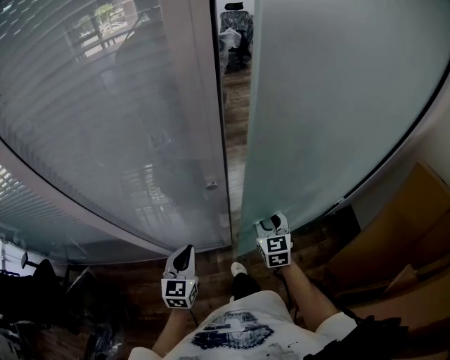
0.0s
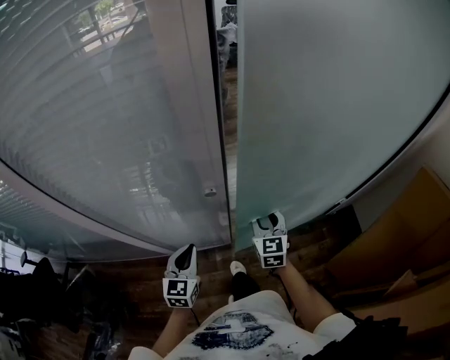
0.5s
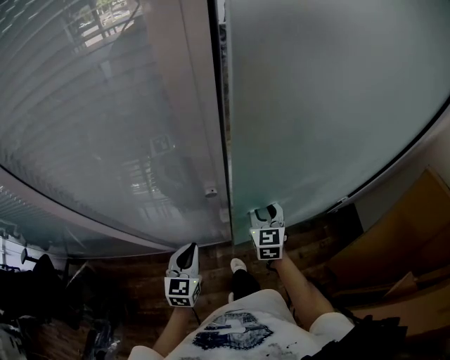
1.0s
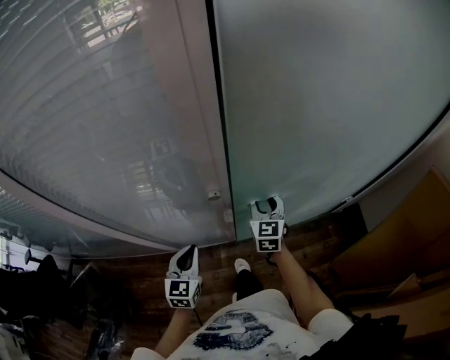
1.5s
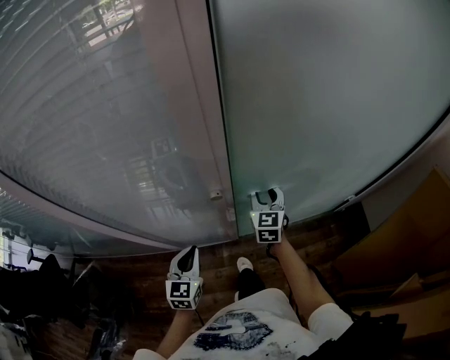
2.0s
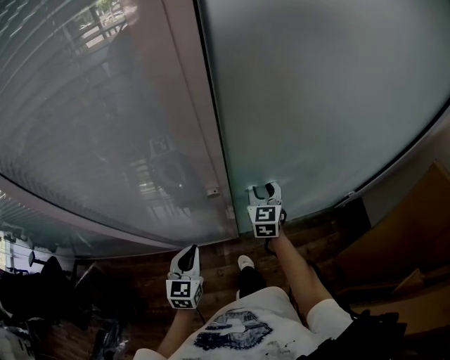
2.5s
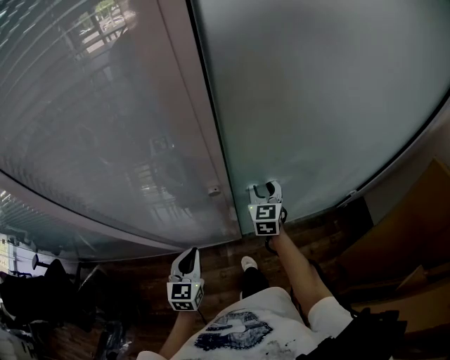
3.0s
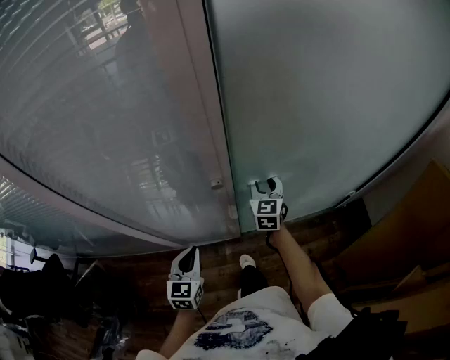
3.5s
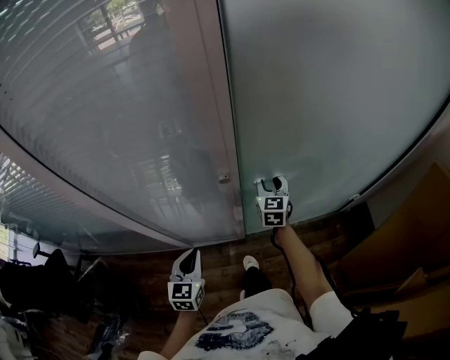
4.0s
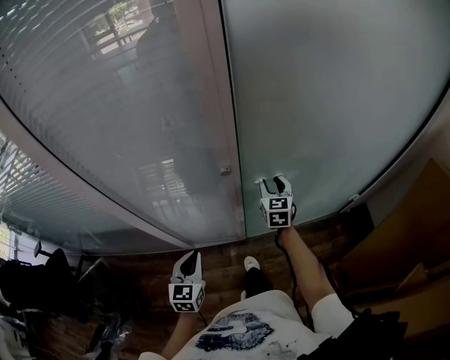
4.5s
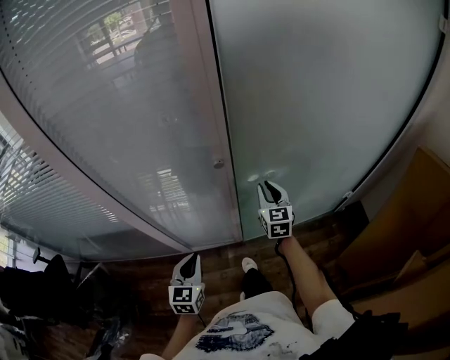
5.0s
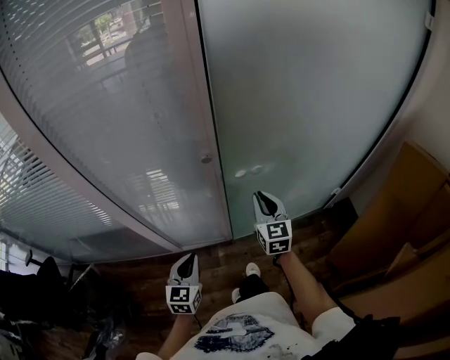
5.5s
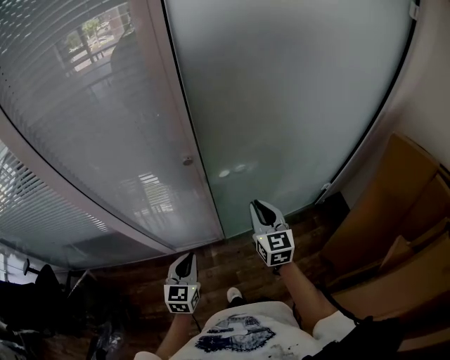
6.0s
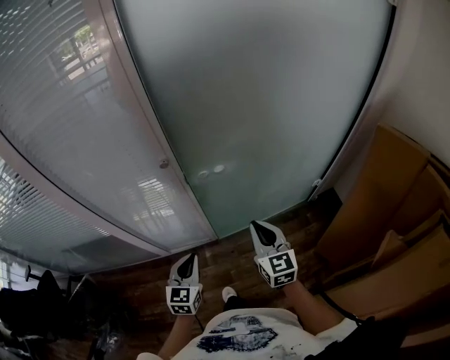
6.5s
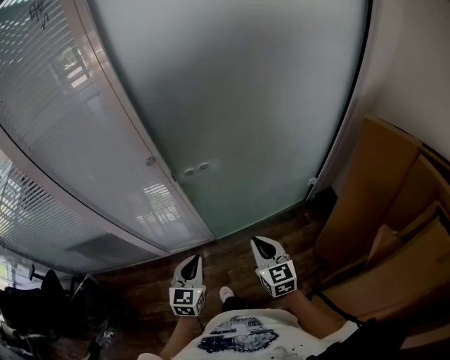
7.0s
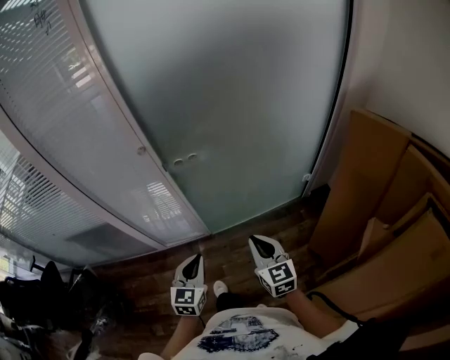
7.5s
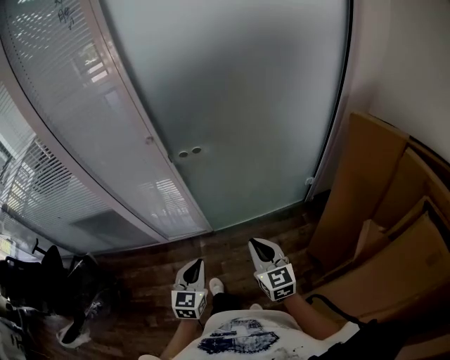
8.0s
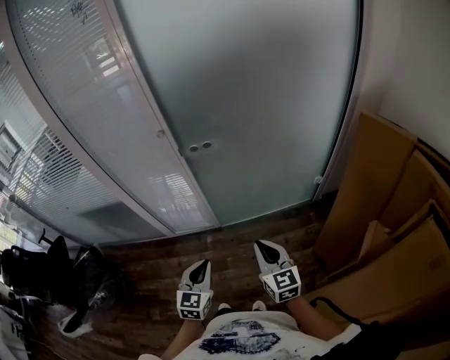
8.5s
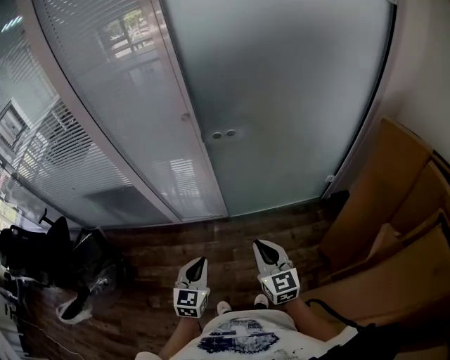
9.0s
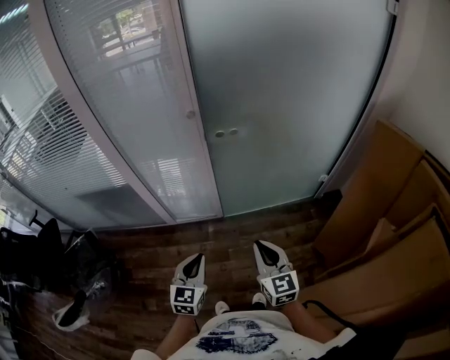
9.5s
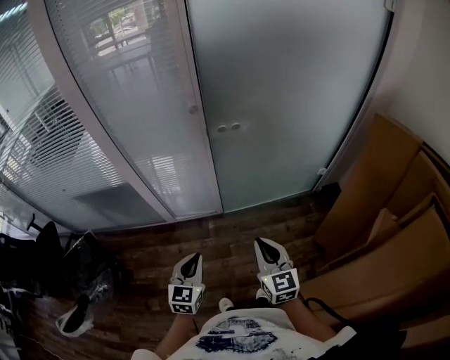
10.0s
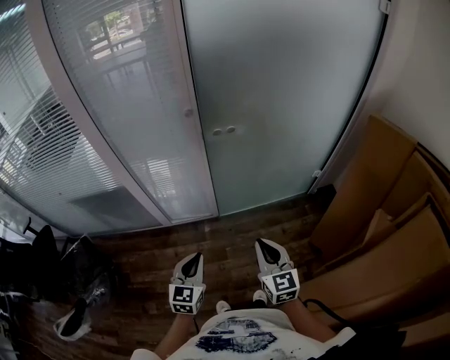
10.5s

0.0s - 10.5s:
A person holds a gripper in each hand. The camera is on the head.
0.0s - 2.0s: The right gripper travels forward by some 10 cm.
2.0s - 4.0s: The left gripper changes place by about 5 cm.
4.0s - 6.5s: The left gripper moves to the right and backward, about 15 cm; the right gripper travels backward by about 30 cm, and closes up.
6.5s - 8.5s: The grippers both shift backward and to the right by about 25 cm.
8.5s - 10.5s: The two grippers go some 15 cm to the left.

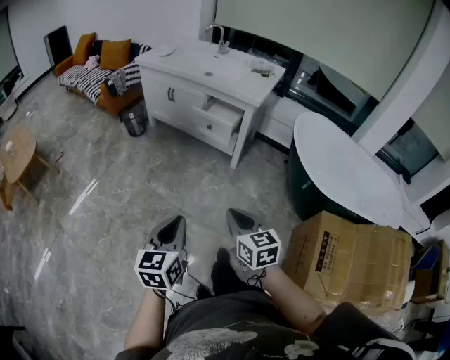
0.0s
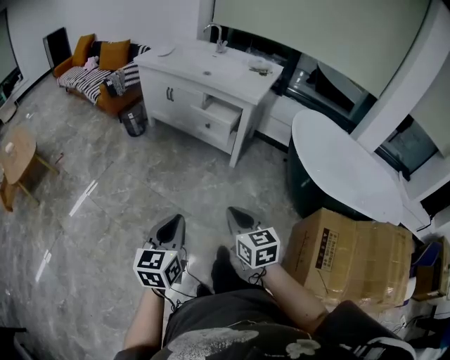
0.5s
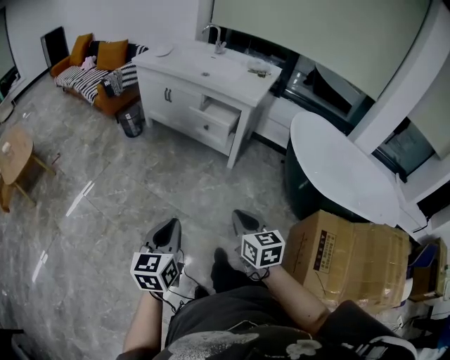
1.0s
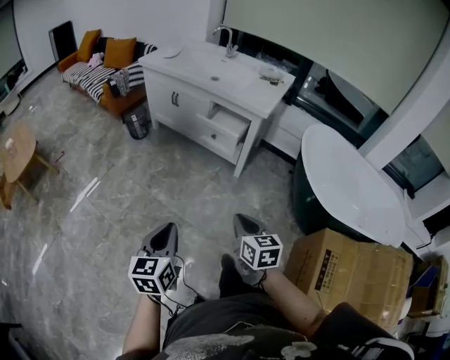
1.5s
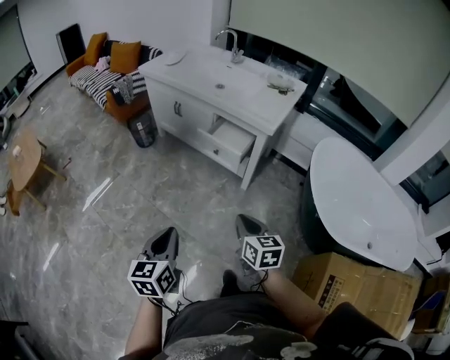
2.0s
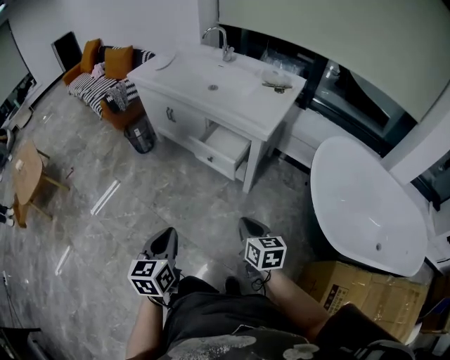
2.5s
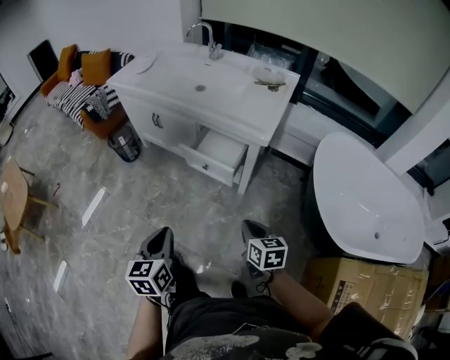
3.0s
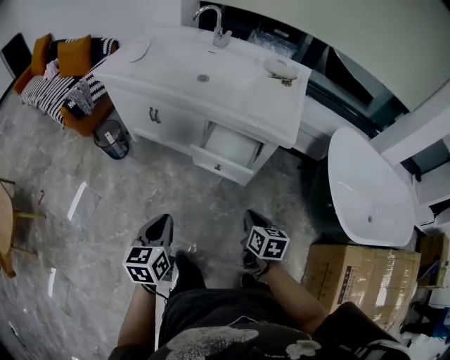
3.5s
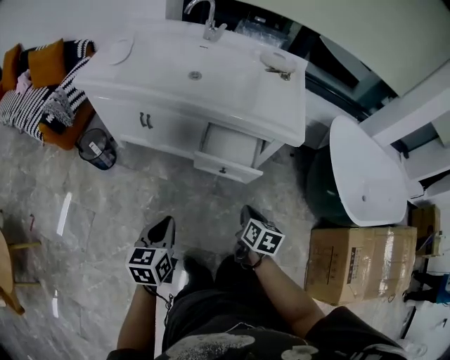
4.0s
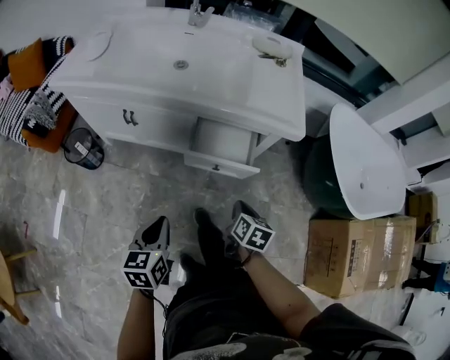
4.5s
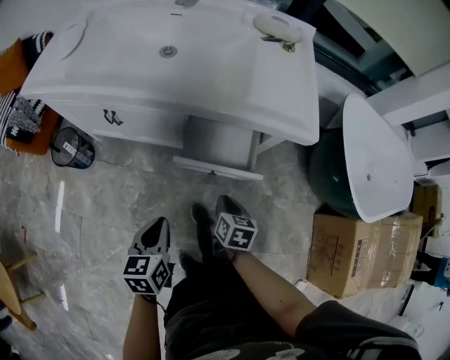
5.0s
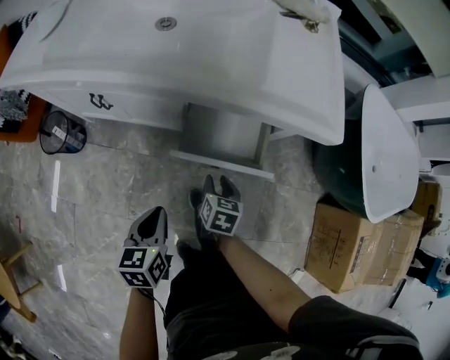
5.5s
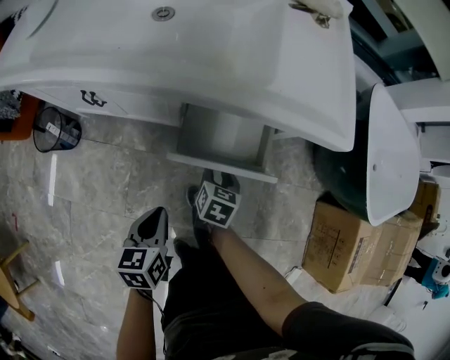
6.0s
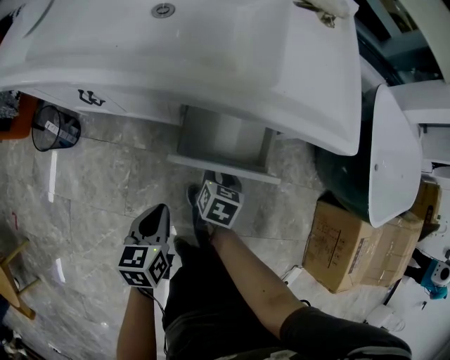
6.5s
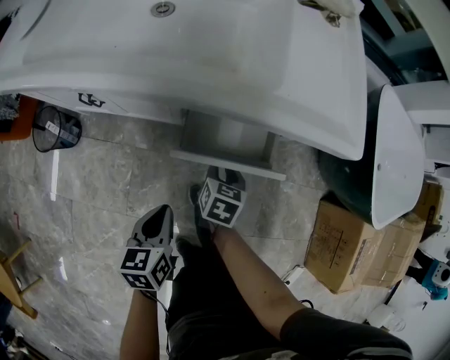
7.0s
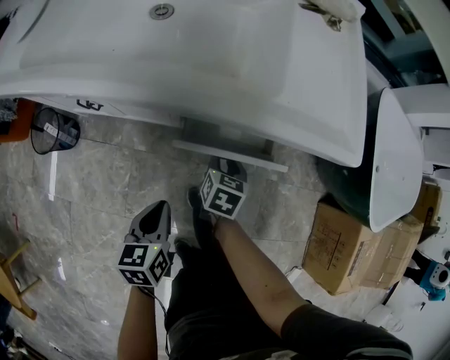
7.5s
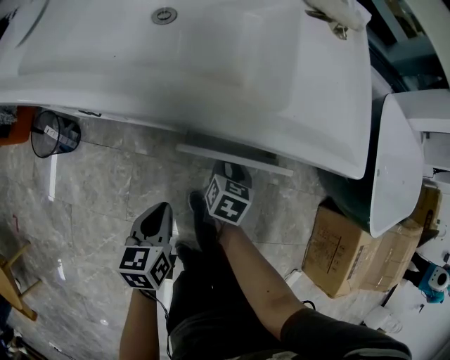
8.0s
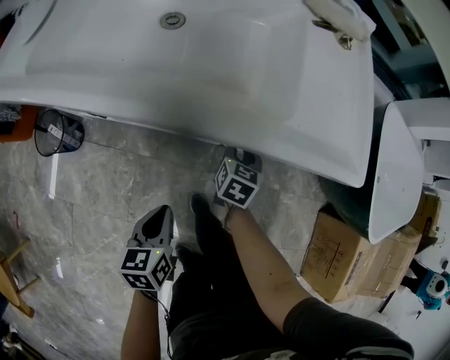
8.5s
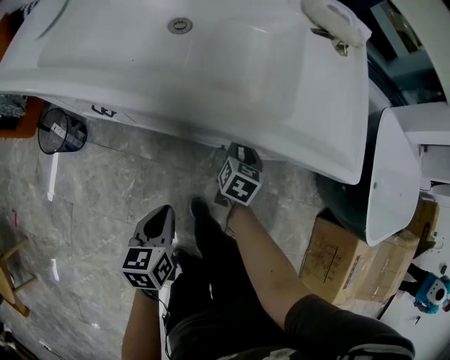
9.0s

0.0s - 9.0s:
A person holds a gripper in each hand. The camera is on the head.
0.0s - 2.0s: Both grippers travel together forward, roughly 20 cm.
2.0s - 4.5s: The right gripper shifts by approximately 35 cm, and rotates some 50 degrees, while the left gripper shifts by roughly 50 cm, and swivels roughly 30 degrees.
4.5s - 7.0s: The right gripper travels forward, downward and to the left by approximately 25 cm, and opens, while the left gripper heads downward and forward, covering some 20 cm.
7.0s - 9.0s: The right gripper moves forward, roughly 10 cm.

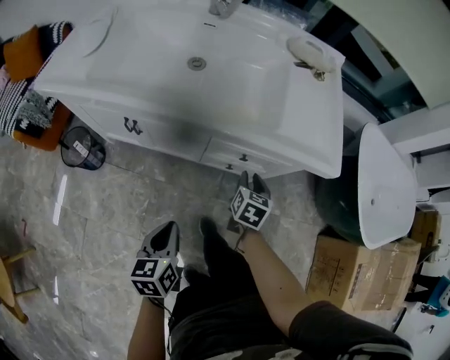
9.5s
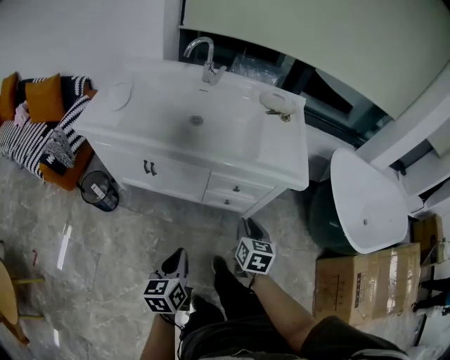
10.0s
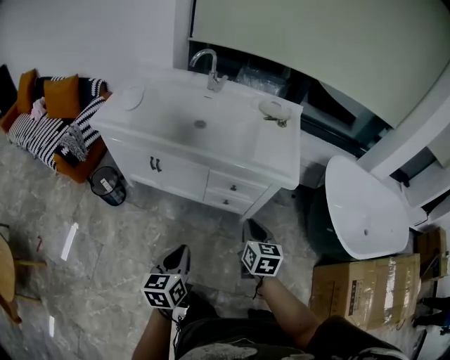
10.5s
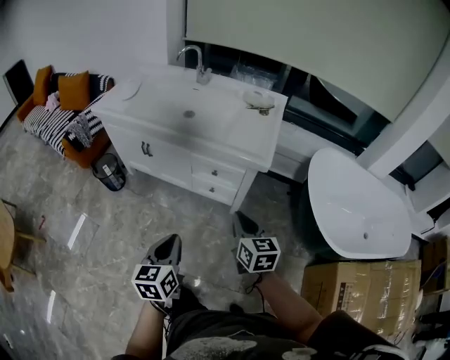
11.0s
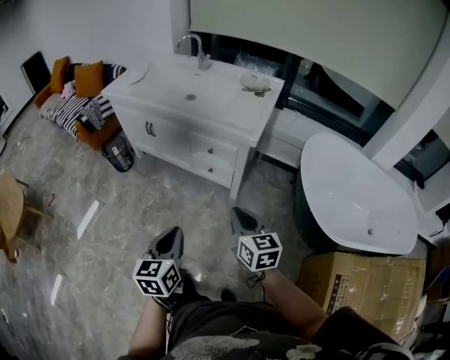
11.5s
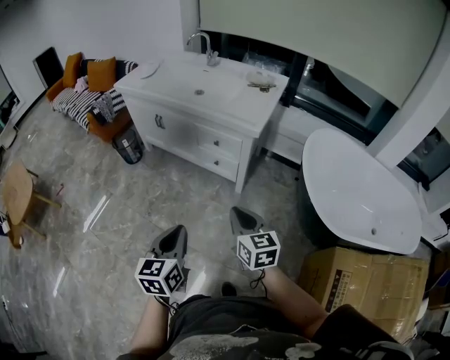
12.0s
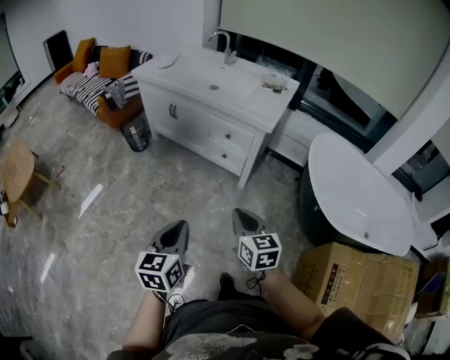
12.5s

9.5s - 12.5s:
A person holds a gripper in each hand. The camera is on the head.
9.5s - 11.0s: The right gripper is displaced upward, backward and to the right by roughly 40 cm, swivels some 40 degrees, and closes. Meanwhile the left gripper shifts approximately 35 cm backward, upward and to the right.
11.0s - 12.5s: Both grippers move backward, some 25 cm.

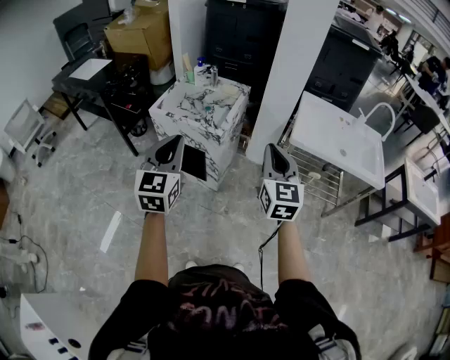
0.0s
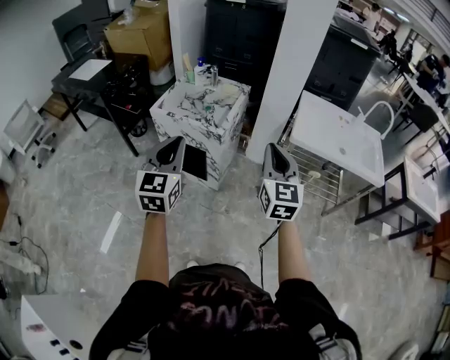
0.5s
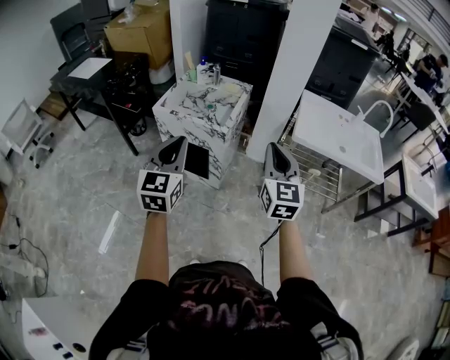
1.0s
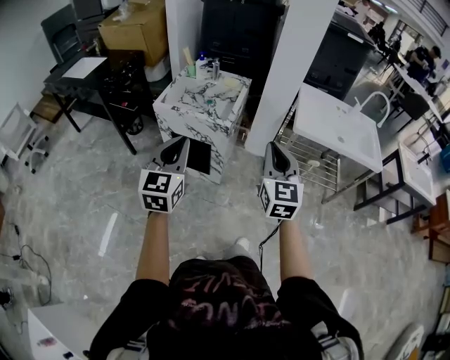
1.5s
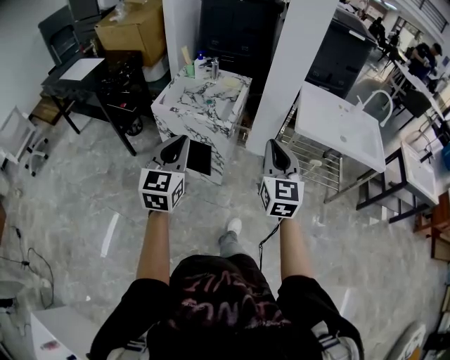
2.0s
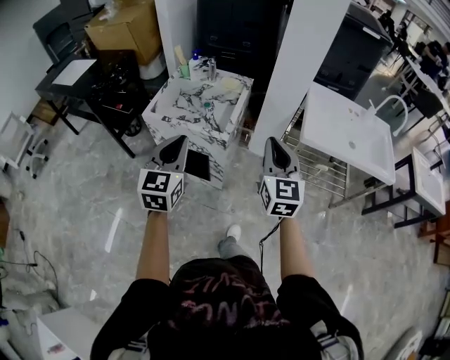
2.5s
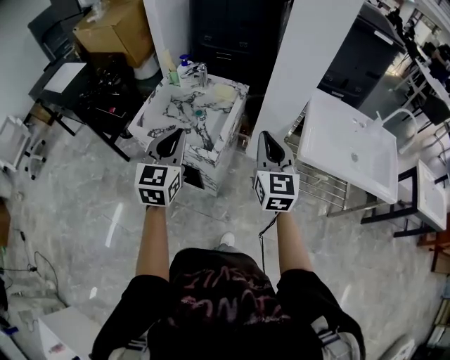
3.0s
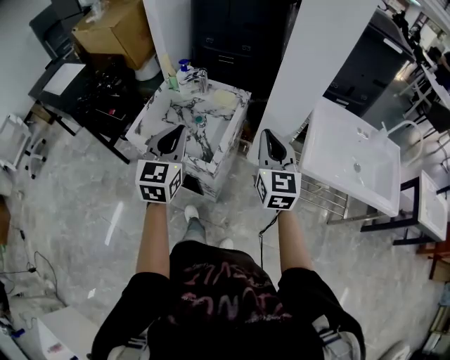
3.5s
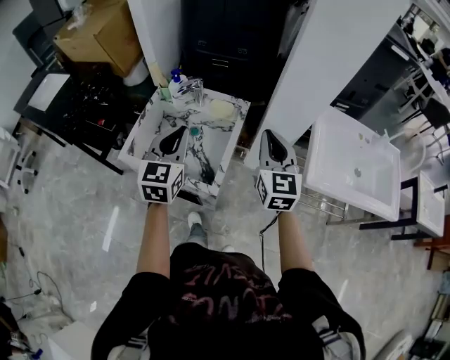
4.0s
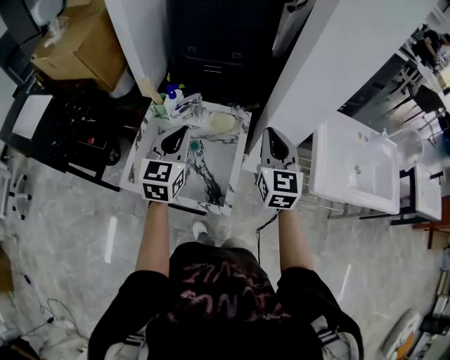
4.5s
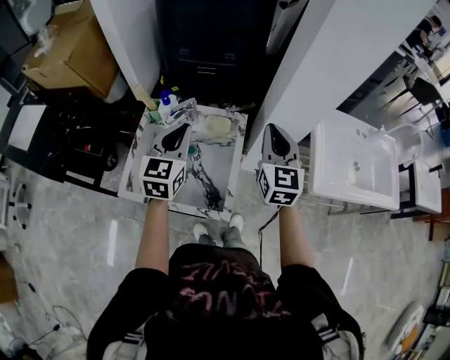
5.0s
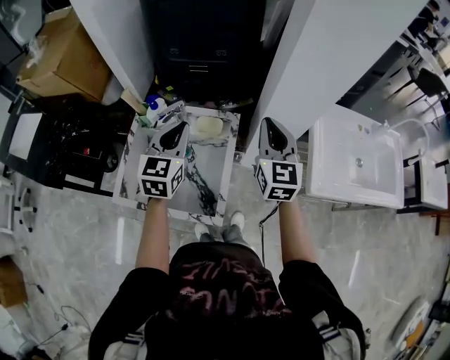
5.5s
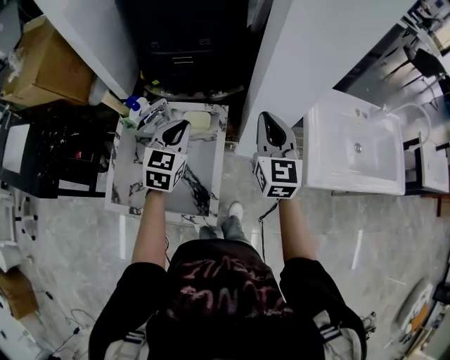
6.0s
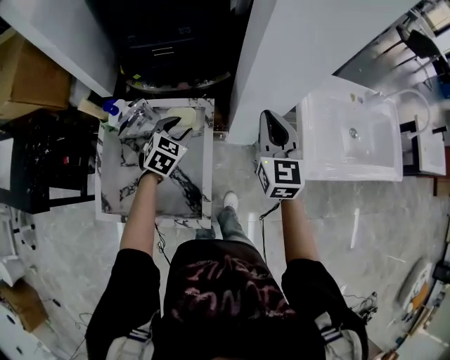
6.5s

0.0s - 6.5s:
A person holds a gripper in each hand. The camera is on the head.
0.0s - 2.0s: The two grippers go about 5 cm to the left.
2.0s - 4.5s: The two grippers travel together, forward, approximately 50 cm.
4.5s - 6.5s: The right gripper goes about 15 cm forward, to the right and downward, while the left gripper goes approximately 30 cm downward, forward and to the right, tips its fingers downward by roughly 30 degrees, and opens up.
